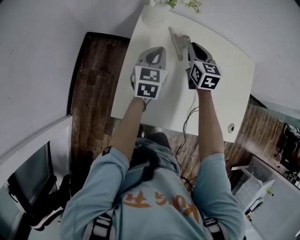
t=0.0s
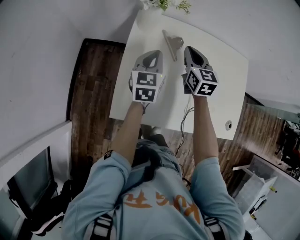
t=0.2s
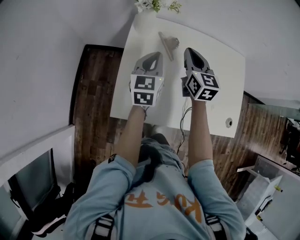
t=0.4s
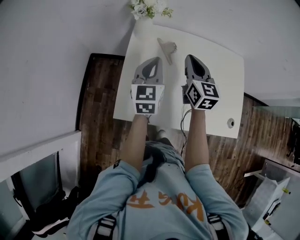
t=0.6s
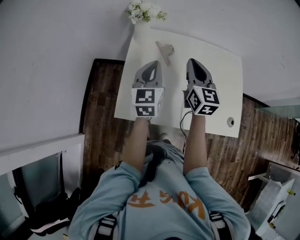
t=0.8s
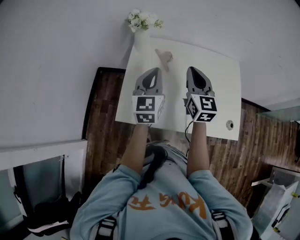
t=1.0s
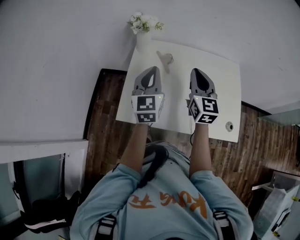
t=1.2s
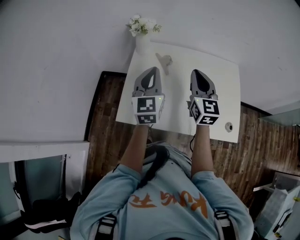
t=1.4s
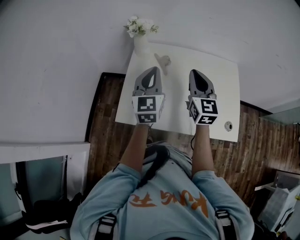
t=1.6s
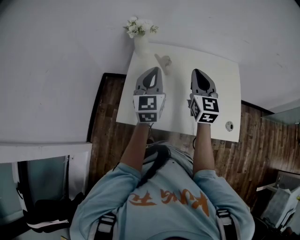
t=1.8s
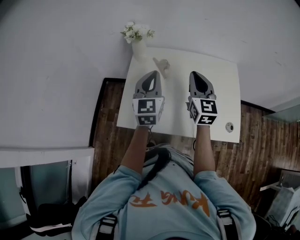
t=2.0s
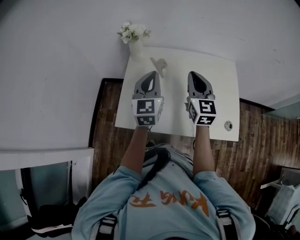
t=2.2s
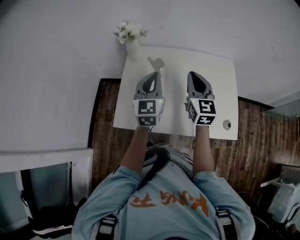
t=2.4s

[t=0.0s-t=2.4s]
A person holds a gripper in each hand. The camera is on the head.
t=0.0s to t=1.2s: The left gripper shifts some 25 cm upward and backward, and turns by about 20 degrees; the right gripper is displaced backward, upward and to the right by about 30 cm, and changes its angle by roughly 20 degrees.
t=1.2s to t=2.4s: The left gripper is displaced to the right by approximately 5 cm.

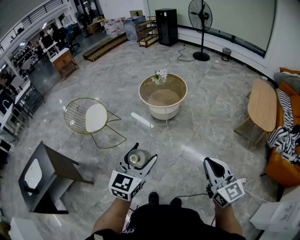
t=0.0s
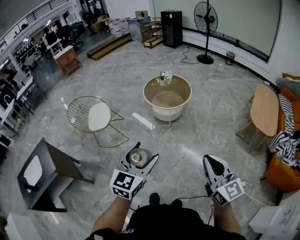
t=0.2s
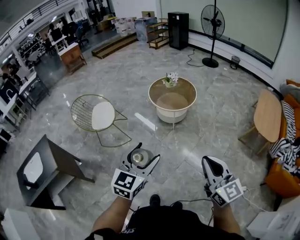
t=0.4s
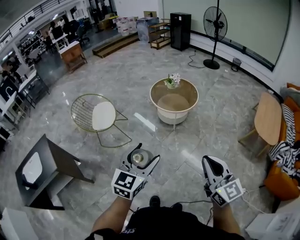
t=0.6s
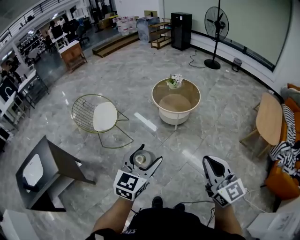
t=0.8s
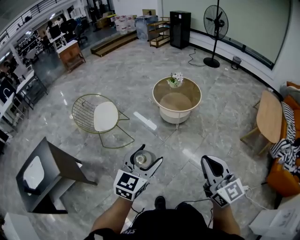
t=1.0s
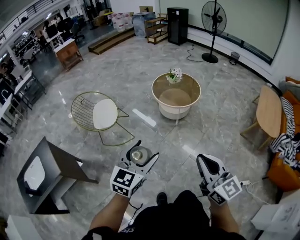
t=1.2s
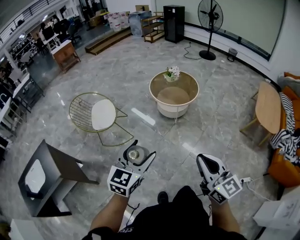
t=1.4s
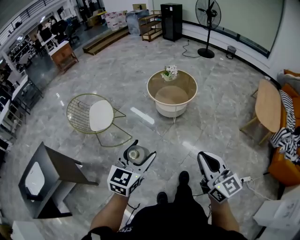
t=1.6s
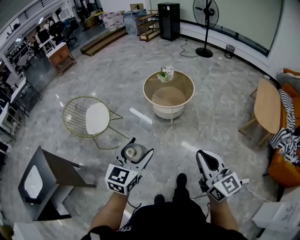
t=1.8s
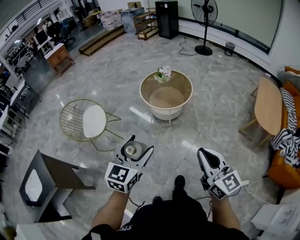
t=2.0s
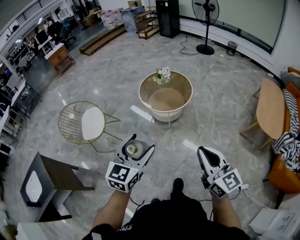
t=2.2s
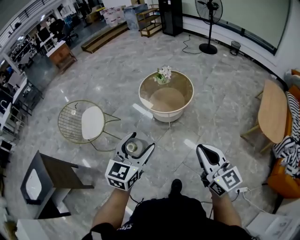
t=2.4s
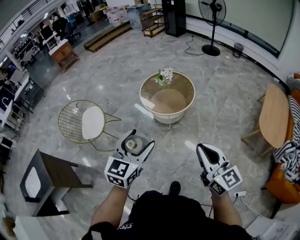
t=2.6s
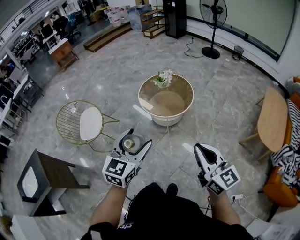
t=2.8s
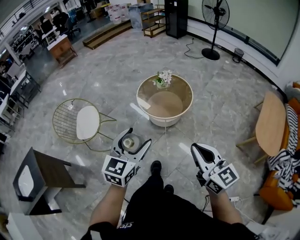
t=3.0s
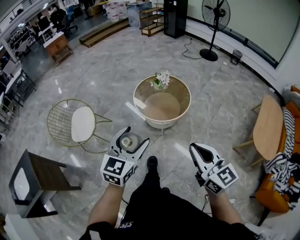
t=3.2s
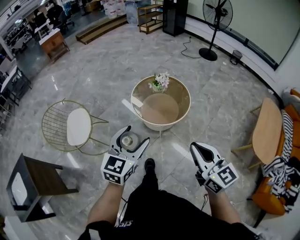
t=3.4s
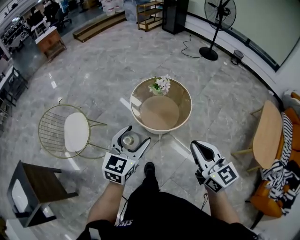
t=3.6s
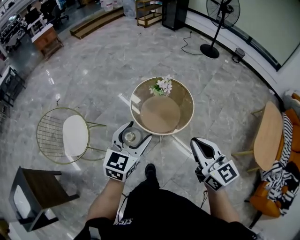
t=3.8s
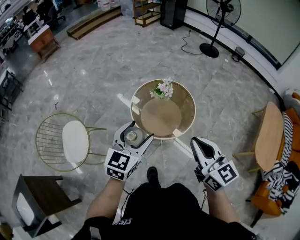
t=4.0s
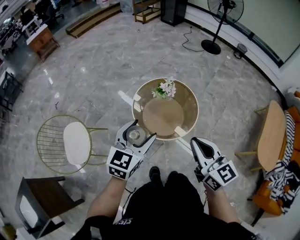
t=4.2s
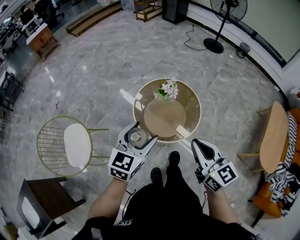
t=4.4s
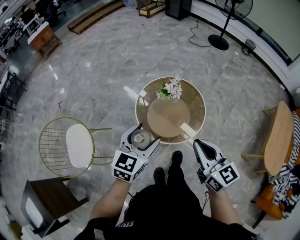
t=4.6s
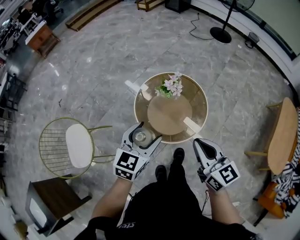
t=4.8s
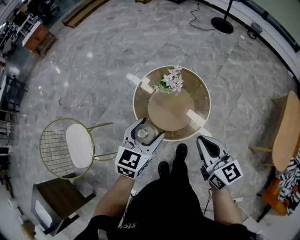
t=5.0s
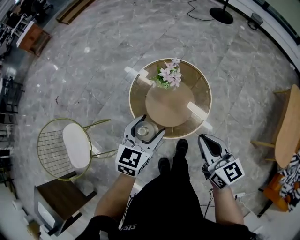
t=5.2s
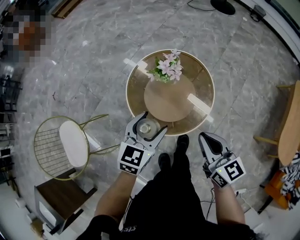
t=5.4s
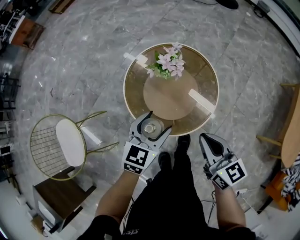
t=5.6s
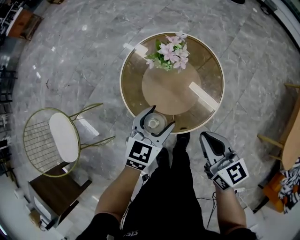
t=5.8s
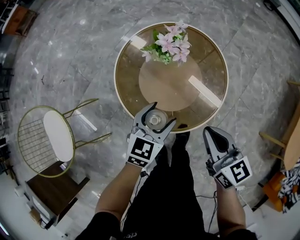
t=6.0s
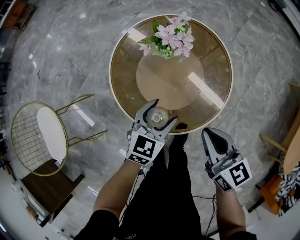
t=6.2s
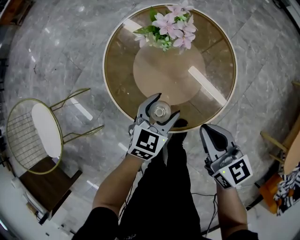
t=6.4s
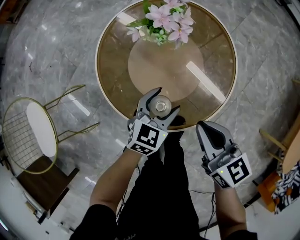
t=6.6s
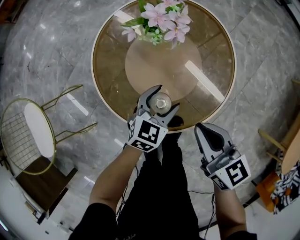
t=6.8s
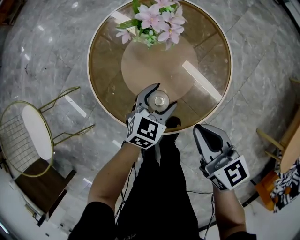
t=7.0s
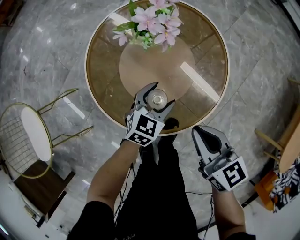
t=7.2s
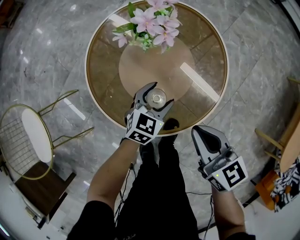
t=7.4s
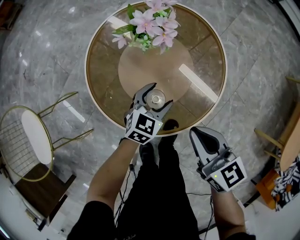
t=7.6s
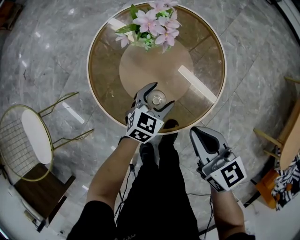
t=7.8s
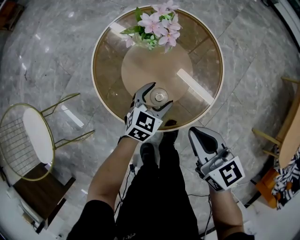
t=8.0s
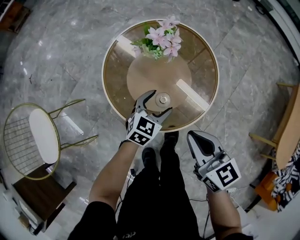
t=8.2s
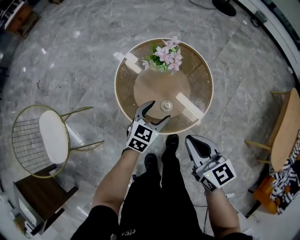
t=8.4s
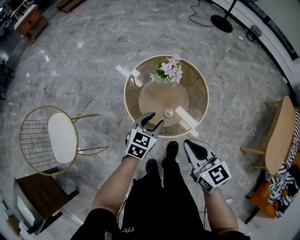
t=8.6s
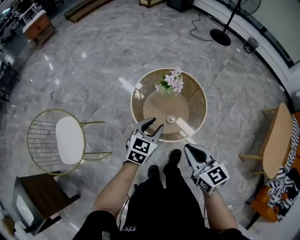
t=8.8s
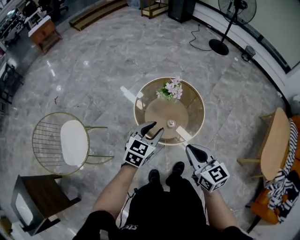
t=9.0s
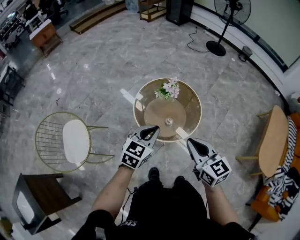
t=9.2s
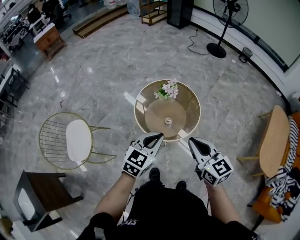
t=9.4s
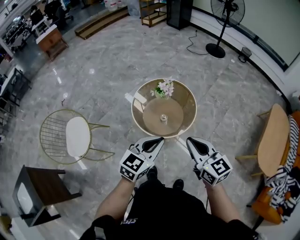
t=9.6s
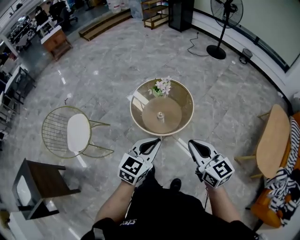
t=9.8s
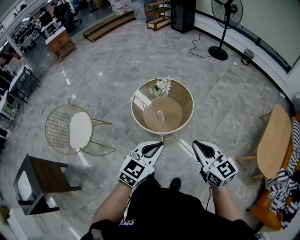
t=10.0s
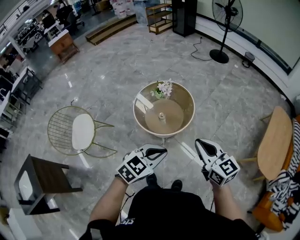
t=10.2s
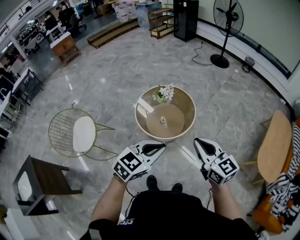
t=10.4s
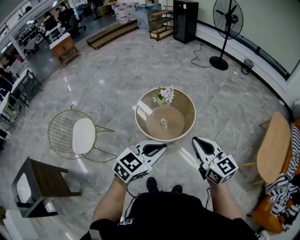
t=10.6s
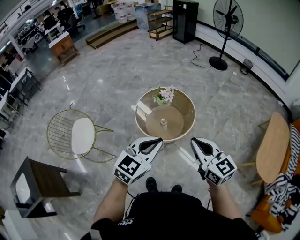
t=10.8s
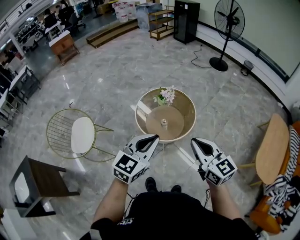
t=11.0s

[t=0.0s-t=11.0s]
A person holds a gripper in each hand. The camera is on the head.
t=0.0s to t=1.6s: The grippers both shift to the left and forward by approximately 20 cm.
t=1.6s to t=3.2s: Both grippers travel together forward and to the right, approximately 35 cm.
t=3.2s to t=4.8s: Both grippers are carried forward, some 40 cm.
t=4.8s to t=6.2s: Both grippers travel together downward, some 35 cm.
t=6.2s to t=7.8s: The left gripper moves downward and to the right, some 15 cm.
t=7.8s to t=9.4s: Both grippers move upward and backward, some 50 cm. The left gripper closes up.
t=9.4s to t=11.0s: The right gripper is displaced backward, to the right and upward by approximately 15 cm. The left gripper is displaced backward, upward and to the right by some 20 cm.

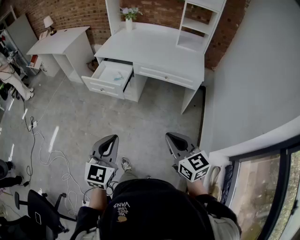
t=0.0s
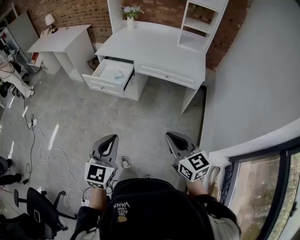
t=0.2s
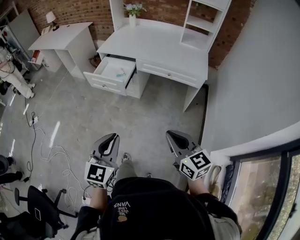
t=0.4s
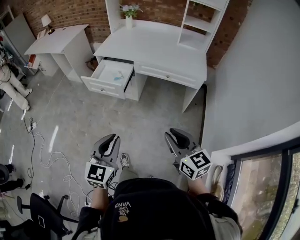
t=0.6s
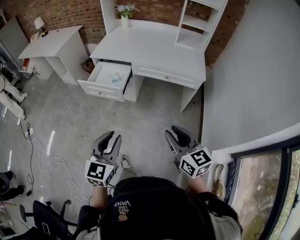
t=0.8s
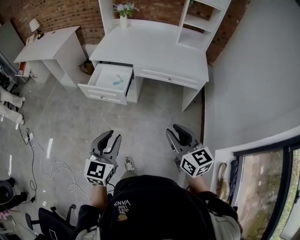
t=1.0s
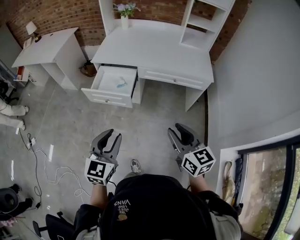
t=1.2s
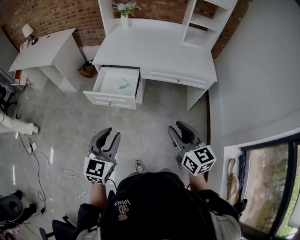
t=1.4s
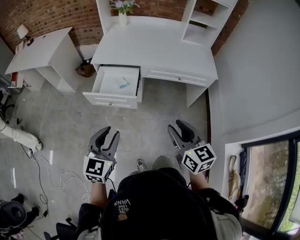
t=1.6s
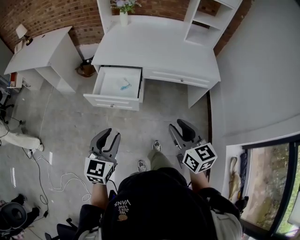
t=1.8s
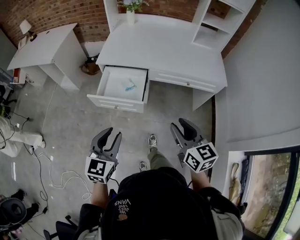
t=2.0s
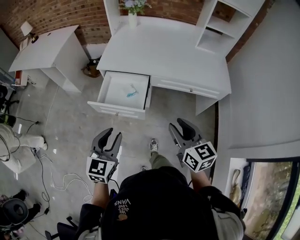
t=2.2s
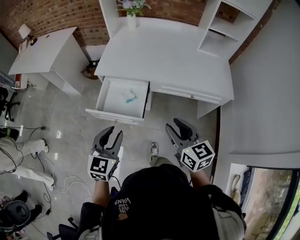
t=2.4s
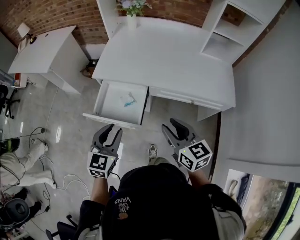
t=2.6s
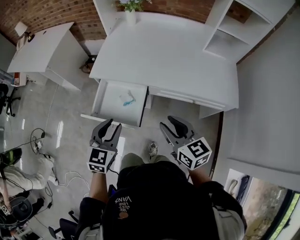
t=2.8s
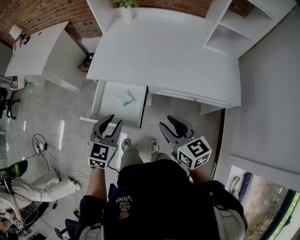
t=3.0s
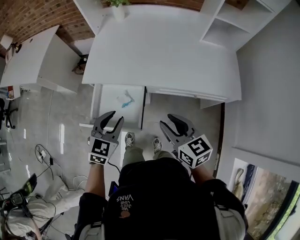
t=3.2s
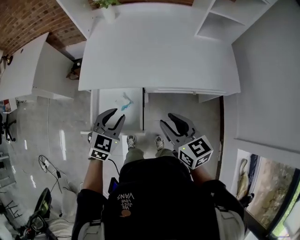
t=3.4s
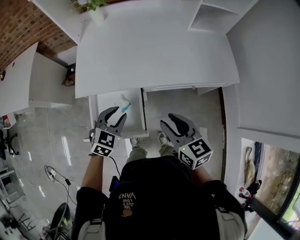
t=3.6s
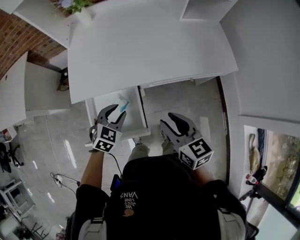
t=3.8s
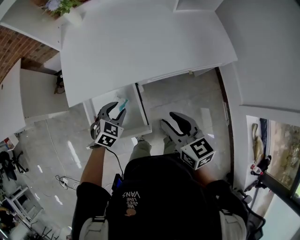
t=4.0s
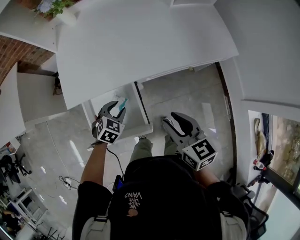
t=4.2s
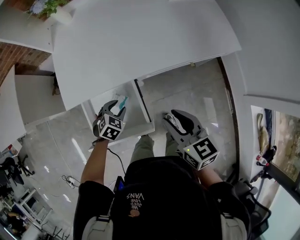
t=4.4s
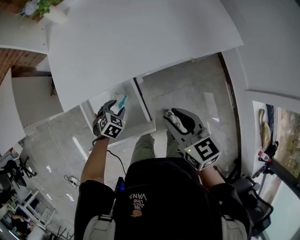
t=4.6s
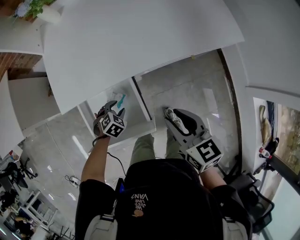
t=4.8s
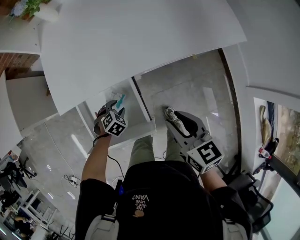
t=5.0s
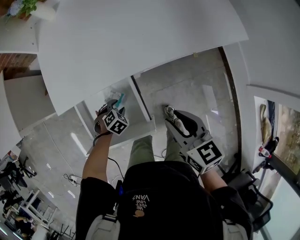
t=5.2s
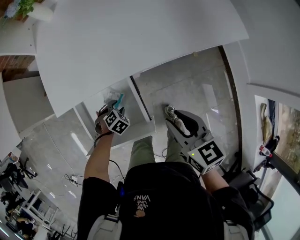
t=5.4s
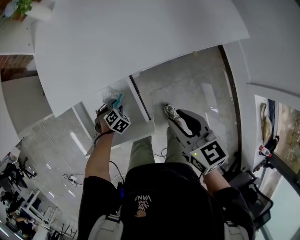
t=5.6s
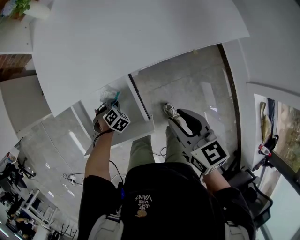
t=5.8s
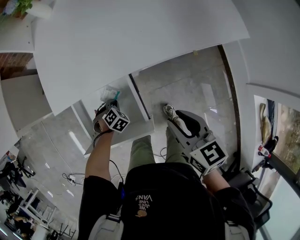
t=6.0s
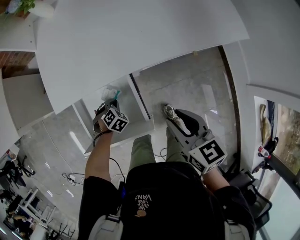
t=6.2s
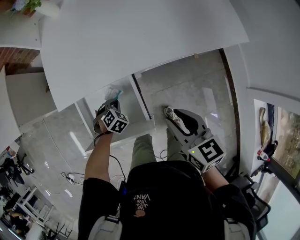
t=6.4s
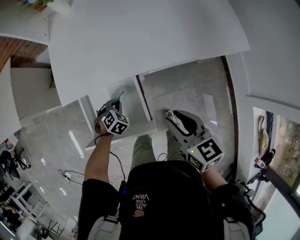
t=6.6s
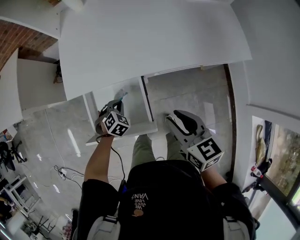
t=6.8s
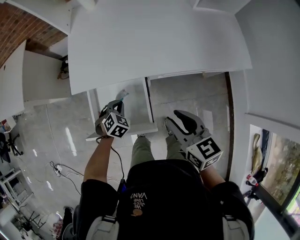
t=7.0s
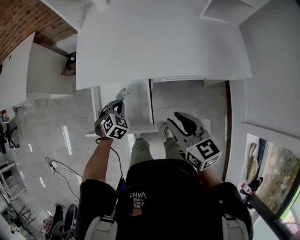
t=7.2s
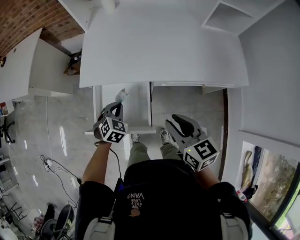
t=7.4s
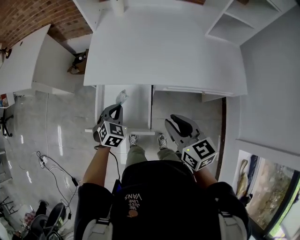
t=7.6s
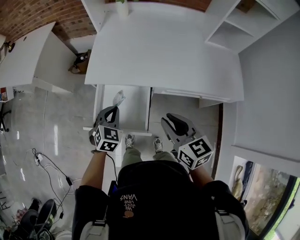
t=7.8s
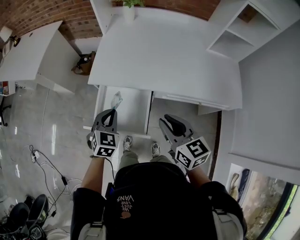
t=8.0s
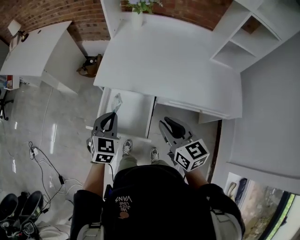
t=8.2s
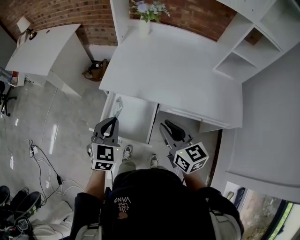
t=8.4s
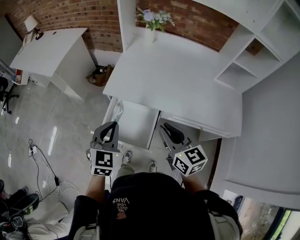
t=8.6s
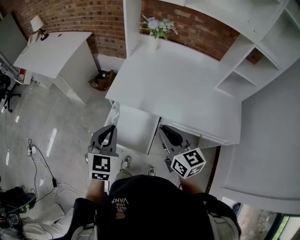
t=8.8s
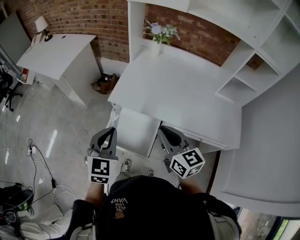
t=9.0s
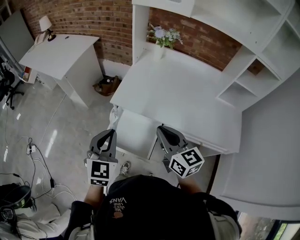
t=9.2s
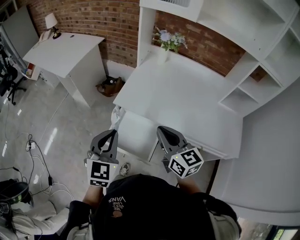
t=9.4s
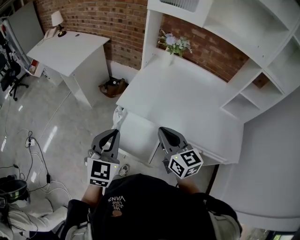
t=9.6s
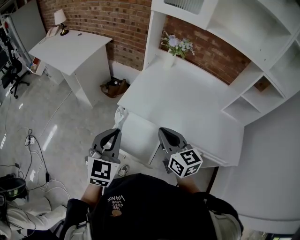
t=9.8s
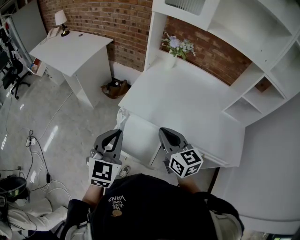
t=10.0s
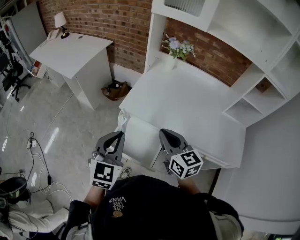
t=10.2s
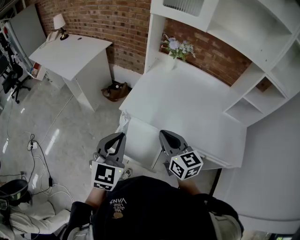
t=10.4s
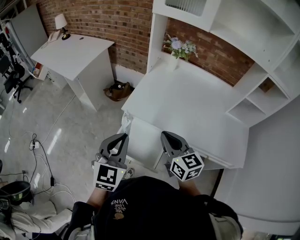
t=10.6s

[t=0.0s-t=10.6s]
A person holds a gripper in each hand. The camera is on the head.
t=0.0s to t=1.6s: Both grippers move forward and to the left, roughly 30 cm. The right gripper opens, while the left gripper opens.
t=1.6s to t=3.0s: Both grippers travel together forward, some 30 cm.
t=3.0s to t=4.6s: The right gripper heads downward, covering about 10 cm, and turns by approximately 30 degrees. The left gripper is displaced downward by roughly 30 cm, and points its fingers approximately 40 degrees further downward.
t=4.6s to t=6.0s: The right gripper shifts by some 5 cm. The left gripper moves downward, about 10 cm, and closes its fingers.
t=6.0s to t=7.6s: The right gripper shifts roughly 10 cm upward, and turns by roughly 20 degrees; the left gripper goes some 25 cm upward, and points its fingers roughly 30 degrees further upward.
t=7.6s to t=9.0s: The right gripper heads upward and to the left, covering approximately 15 cm, while the left gripper heads upward, covering roughly 25 cm, and swivels roughly 40 degrees.
t=9.0s to t=10.6s: The right gripper ends up roughly 5 cm from where it was.
